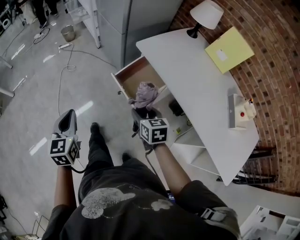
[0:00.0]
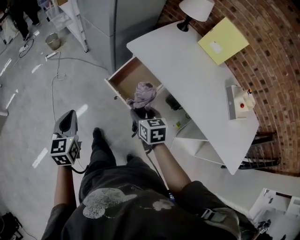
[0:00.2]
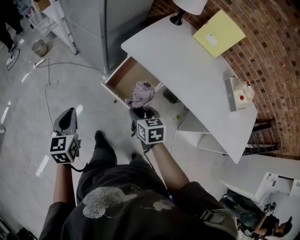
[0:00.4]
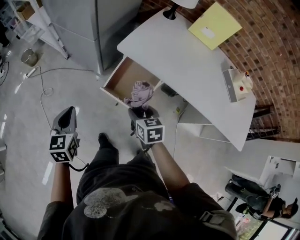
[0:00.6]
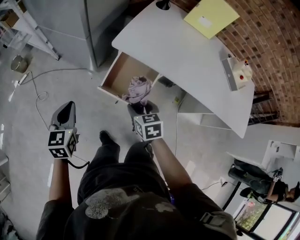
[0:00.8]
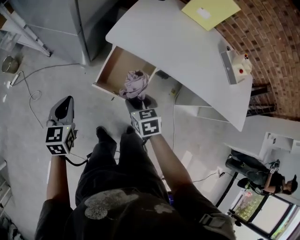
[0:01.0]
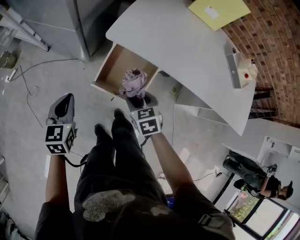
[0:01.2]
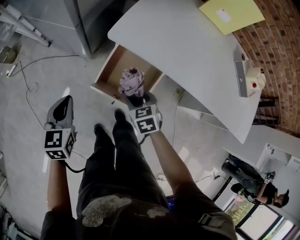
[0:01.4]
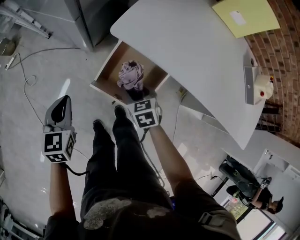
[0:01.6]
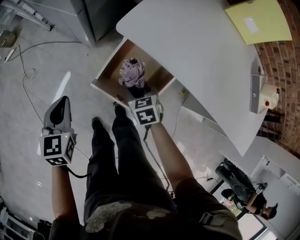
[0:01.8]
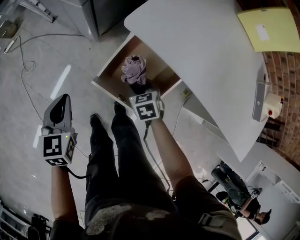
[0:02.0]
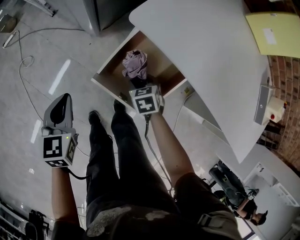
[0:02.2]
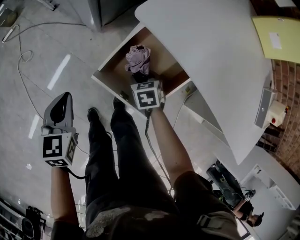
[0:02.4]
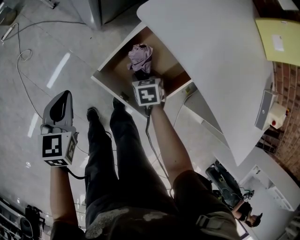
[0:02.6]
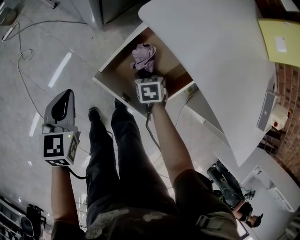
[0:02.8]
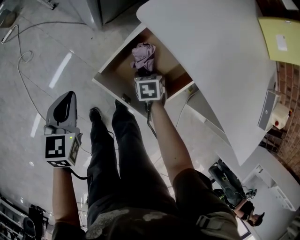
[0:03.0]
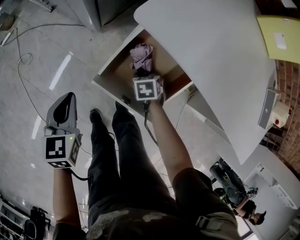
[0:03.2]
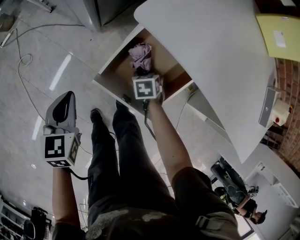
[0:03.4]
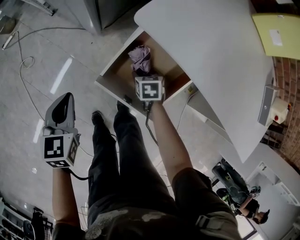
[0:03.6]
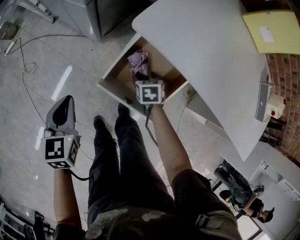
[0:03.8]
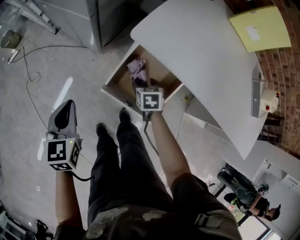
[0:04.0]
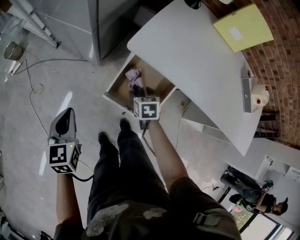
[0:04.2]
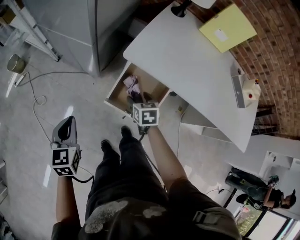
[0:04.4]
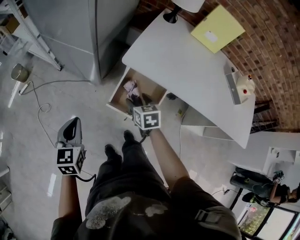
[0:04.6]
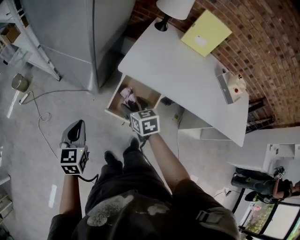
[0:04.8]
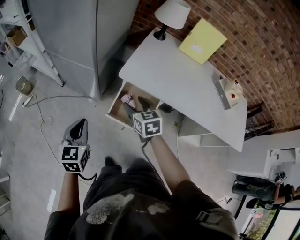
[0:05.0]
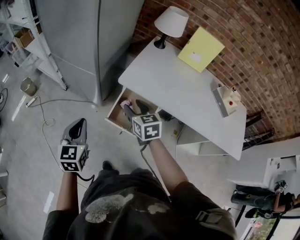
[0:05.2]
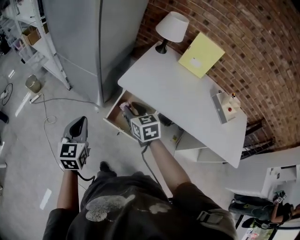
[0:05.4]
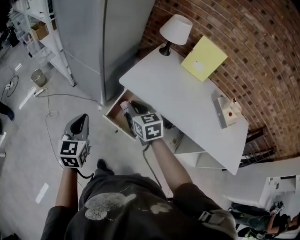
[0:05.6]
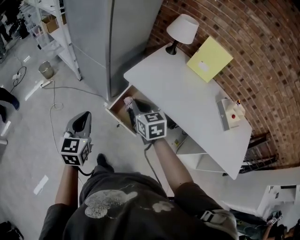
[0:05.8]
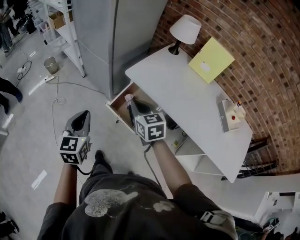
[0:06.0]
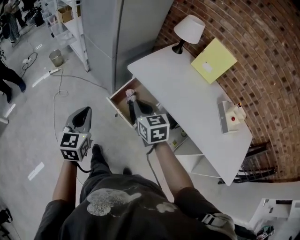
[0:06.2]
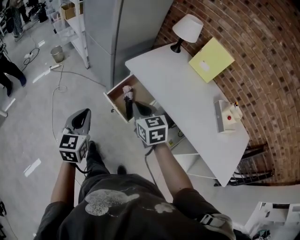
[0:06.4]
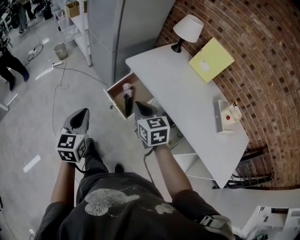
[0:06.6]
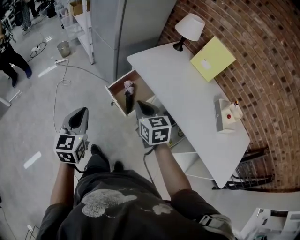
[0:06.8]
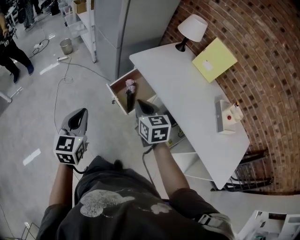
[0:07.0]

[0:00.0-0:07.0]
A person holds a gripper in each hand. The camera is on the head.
0:00.0 to 0:01.4: The left gripper shifts by approximately 35 cm, and rotates about 40 degrees; the right gripper shifts by approximately 25 cm, and turns by some 30 degrees.
0:01.4 to 0:02.8: The left gripper goes roughly 10 cm downward. The right gripper shifts some 25 cm downward and forward.
0:02.8 to 0:04.2: Both grippers travel together upward, approximately 15 cm.
0:04.2 to 0:05.6: The left gripper goes about 25 cm upward, to the right and backward, while the right gripper travels upward by some 30 cm, swivels approximately 30 degrees, and closes its fingers.
0:05.6 to 0:07.0: Both grippers travel together backward, approximately 25 cm.

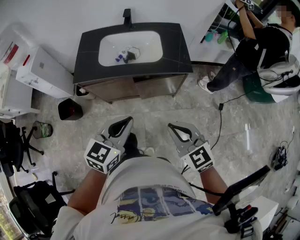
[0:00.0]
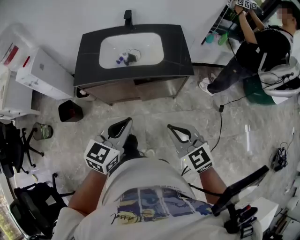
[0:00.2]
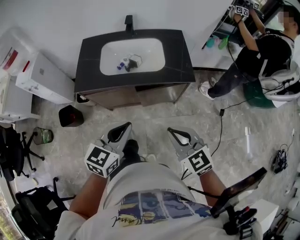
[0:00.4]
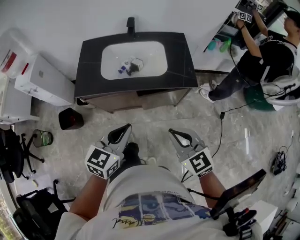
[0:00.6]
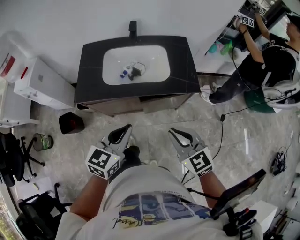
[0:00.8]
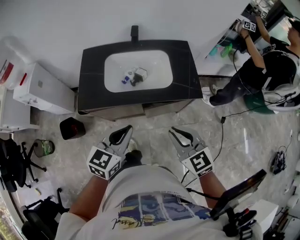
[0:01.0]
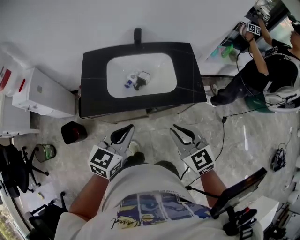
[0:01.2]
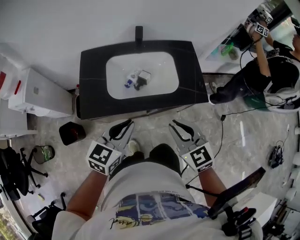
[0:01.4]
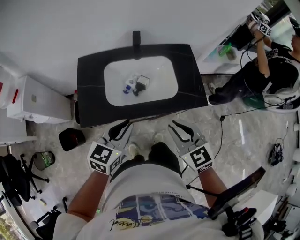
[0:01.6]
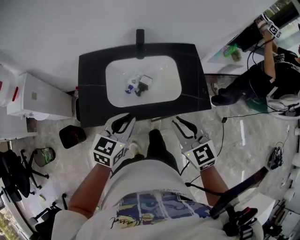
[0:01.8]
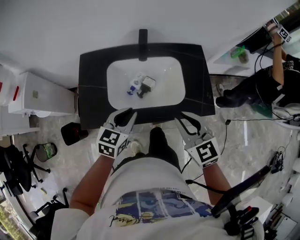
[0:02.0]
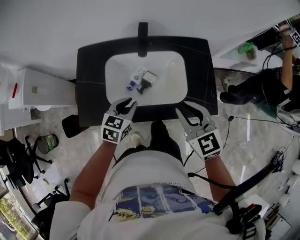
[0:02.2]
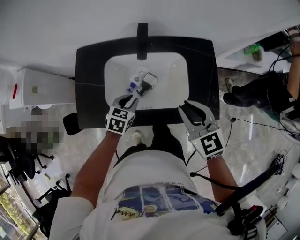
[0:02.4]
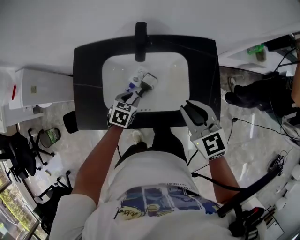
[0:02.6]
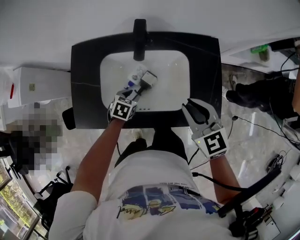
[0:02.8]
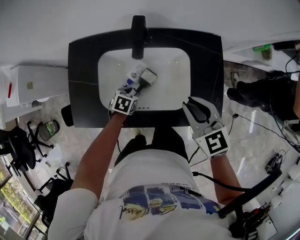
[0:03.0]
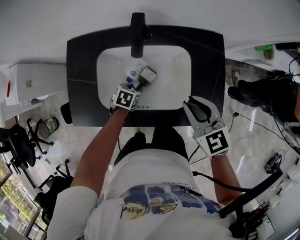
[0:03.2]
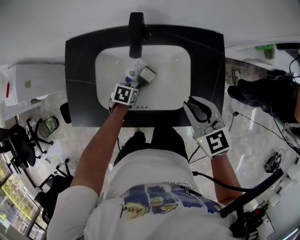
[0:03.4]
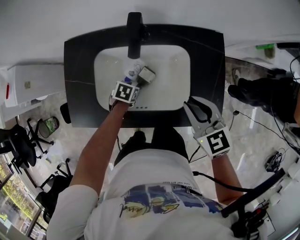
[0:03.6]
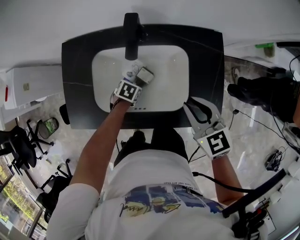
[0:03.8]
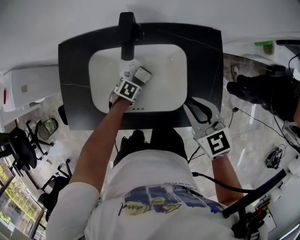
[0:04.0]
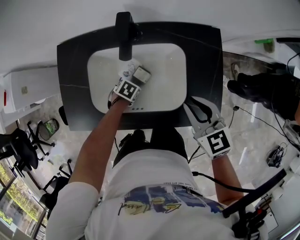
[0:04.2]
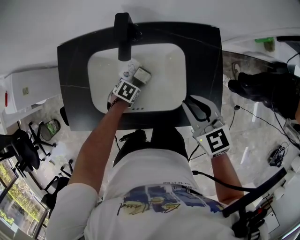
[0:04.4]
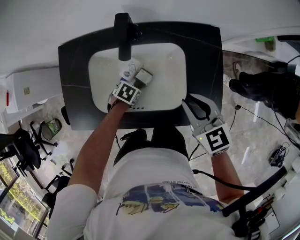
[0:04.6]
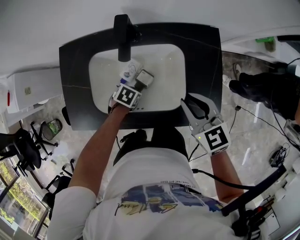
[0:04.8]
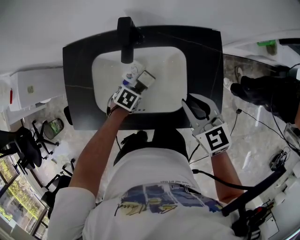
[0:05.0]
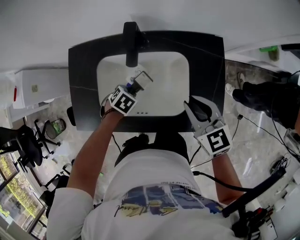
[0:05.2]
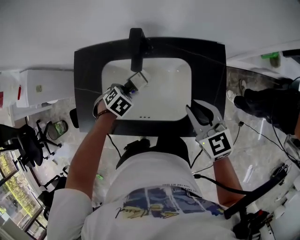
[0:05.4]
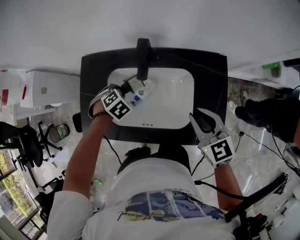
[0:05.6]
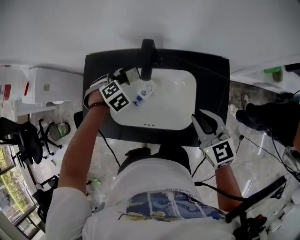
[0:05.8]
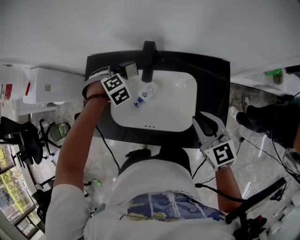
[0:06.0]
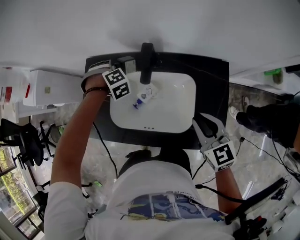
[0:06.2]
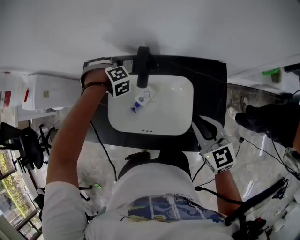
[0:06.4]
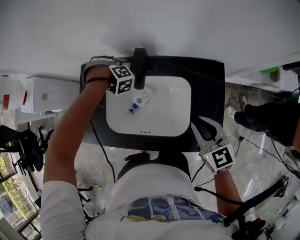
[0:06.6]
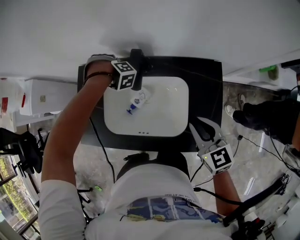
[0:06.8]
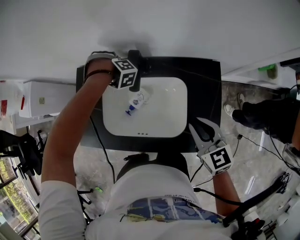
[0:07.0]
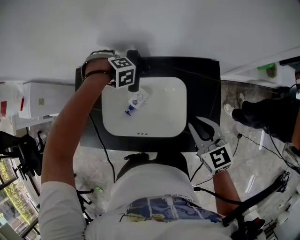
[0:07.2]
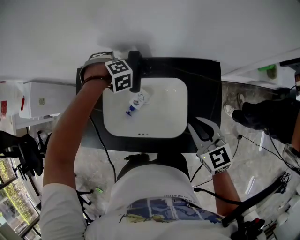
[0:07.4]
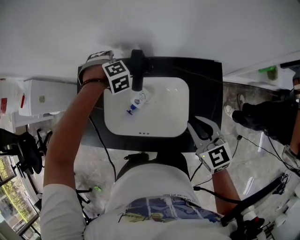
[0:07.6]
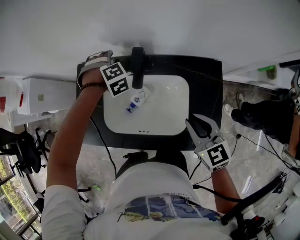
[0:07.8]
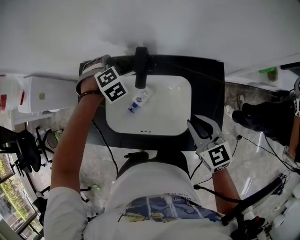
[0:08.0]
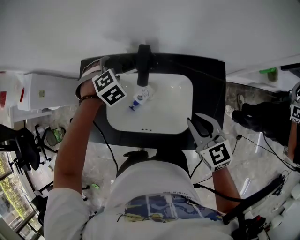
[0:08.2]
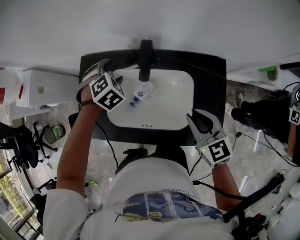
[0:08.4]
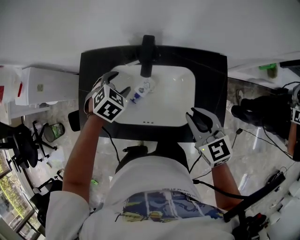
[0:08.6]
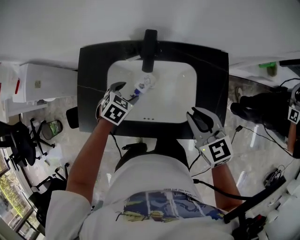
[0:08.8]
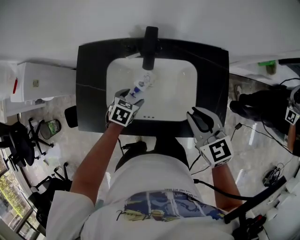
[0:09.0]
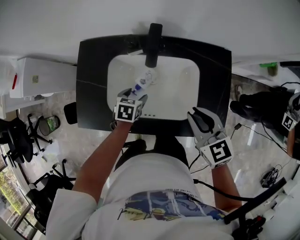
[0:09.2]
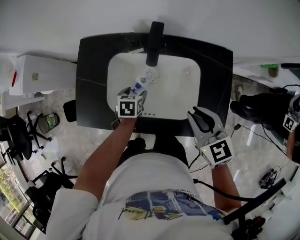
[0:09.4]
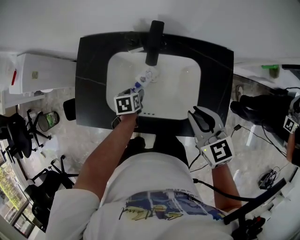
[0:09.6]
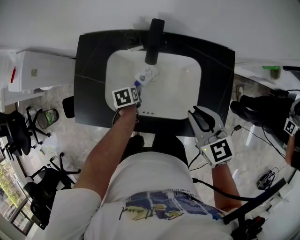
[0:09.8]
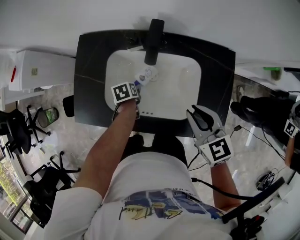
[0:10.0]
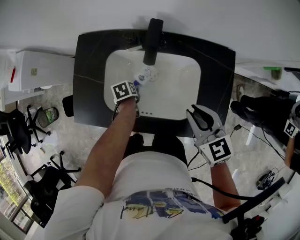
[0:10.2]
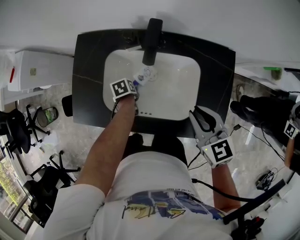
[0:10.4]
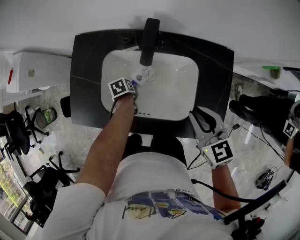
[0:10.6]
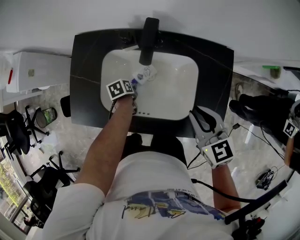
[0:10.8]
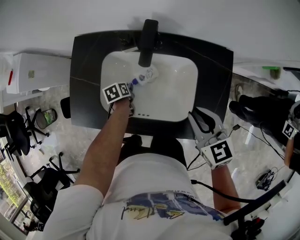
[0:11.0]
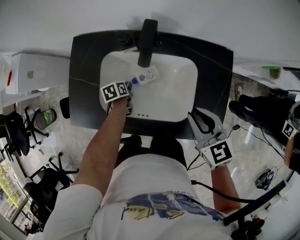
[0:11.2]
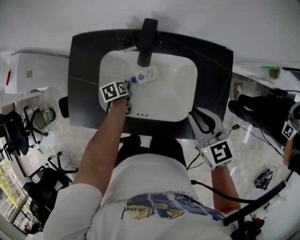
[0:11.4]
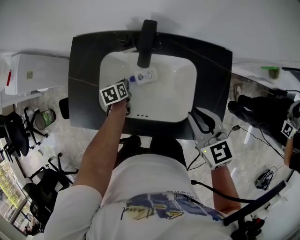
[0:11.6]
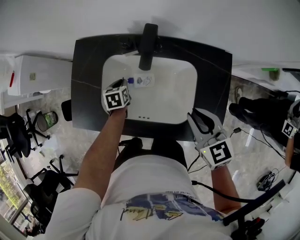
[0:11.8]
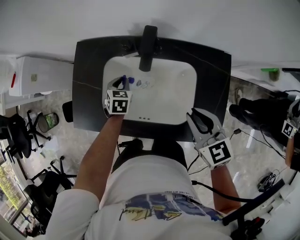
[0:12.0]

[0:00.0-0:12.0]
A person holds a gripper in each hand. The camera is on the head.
0:00.0 to 0:01.6: Both grippers travel together forward and to the left, approximately 25 cm.
0:01.6 to 0:03.0: The right gripper goes some 20 cm forward, while the left gripper is displaced downward and forward by some 35 cm, and points its fingers some 40 degrees further downward.
0:03.0 to 0:04.4: The left gripper moves downward, about 5 cm.
0:04.4 to 0:06.0: The left gripper shifts by roughly 30 cm, and turns by about 60 degrees.
0:06.0 to 0:07.6: The left gripper moves to the right, some 10 cm, and opens.
0:07.6 to 0:09.0: The left gripper moves approximately 25 cm, and twists some 60 degrees counterclockwise, seen from behind. Meanwhile the right gripper shifts by approximately 5 cm.
0:09.0 to 0:10.4: The left gripper goes roughly 10 cm downward, and rolls counterclockwise, seen from behind, by some 60 degrees.
0:10.4 to 0:12.0: The left gripper shifts about 10 cm upward, rotates around the line of its fingers by some 40 degrees, clockwise from behind, and closes.

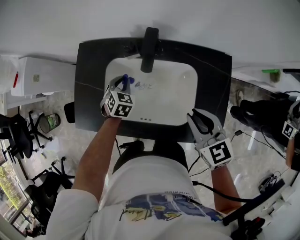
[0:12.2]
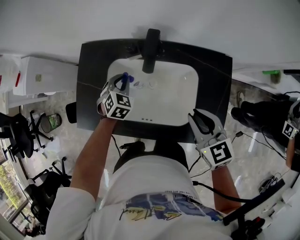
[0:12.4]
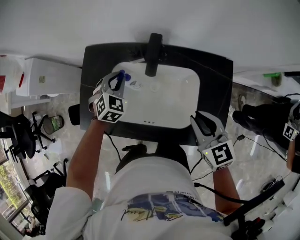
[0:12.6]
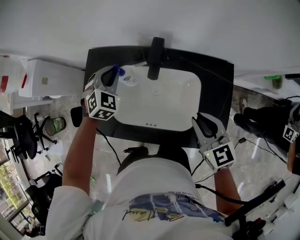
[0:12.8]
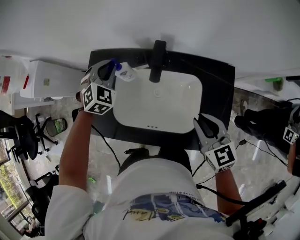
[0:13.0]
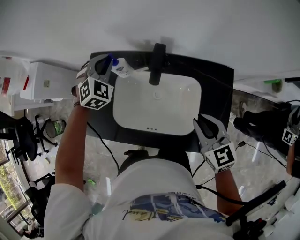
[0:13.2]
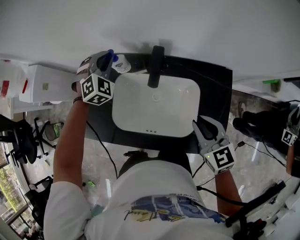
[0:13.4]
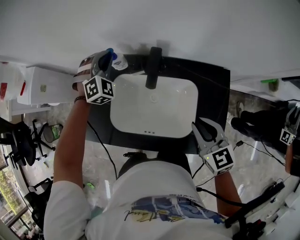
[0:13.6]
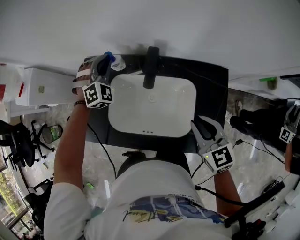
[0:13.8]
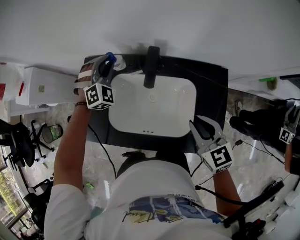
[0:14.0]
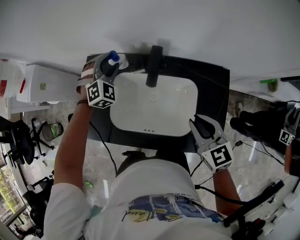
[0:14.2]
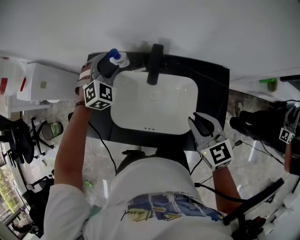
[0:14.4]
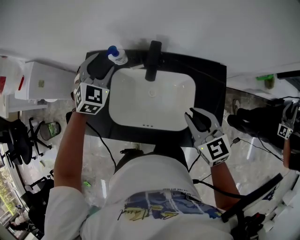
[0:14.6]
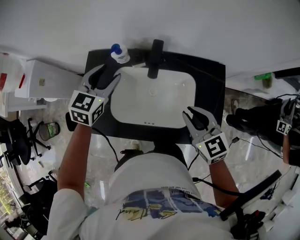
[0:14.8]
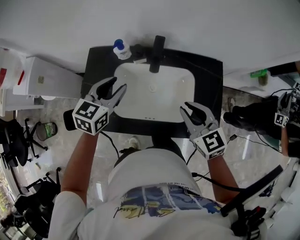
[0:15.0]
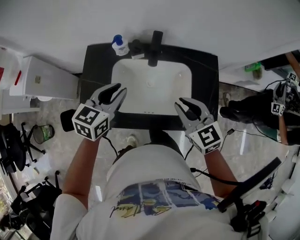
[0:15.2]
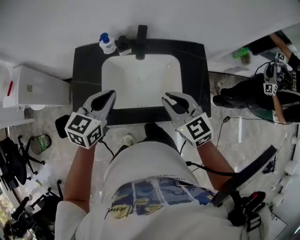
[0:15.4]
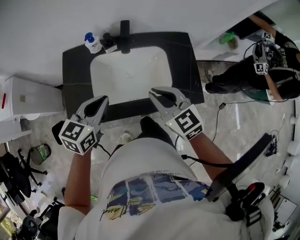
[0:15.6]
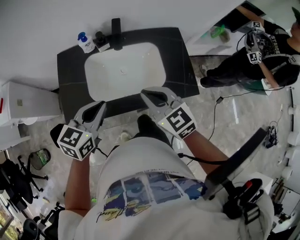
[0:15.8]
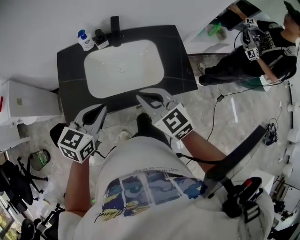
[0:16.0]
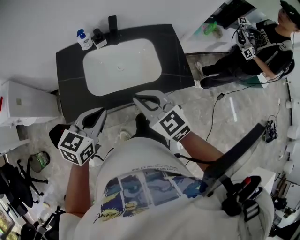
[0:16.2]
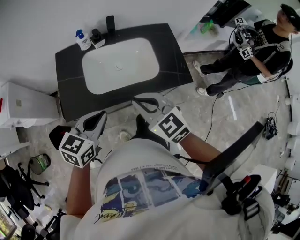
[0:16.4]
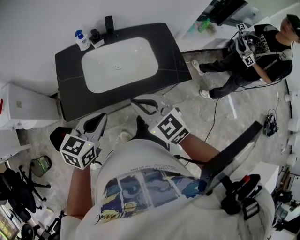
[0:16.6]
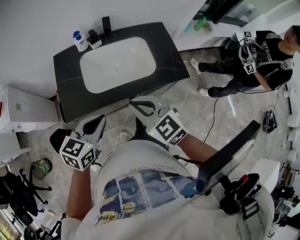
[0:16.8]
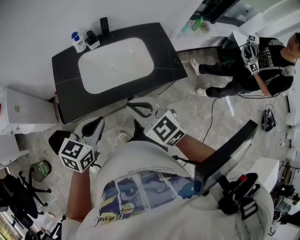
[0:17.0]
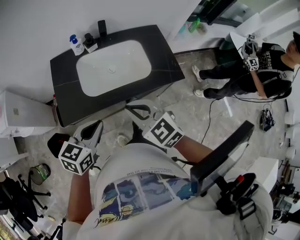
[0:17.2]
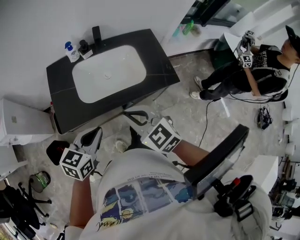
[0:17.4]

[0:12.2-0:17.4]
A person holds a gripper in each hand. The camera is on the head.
0:12.2 to 0:14.0: The left gripper moves upward and forward, roughly 20 cm, and rolls clockwise, seen from behind, by about 40 degrees.
0:14.0 to 0:15.6: The left gripper goes approximately 30 cm backward, rotates around the line of its fingers by about 60 degrees, counterclockwise from behind, and opens, then closes again, while the right gripper travels to the left, backward and upward by roughly 15 cm.
0:15.6 to 0:17.4: The grippers both shift backward by approximately 15 cm.
